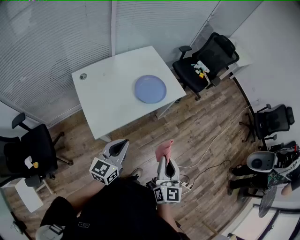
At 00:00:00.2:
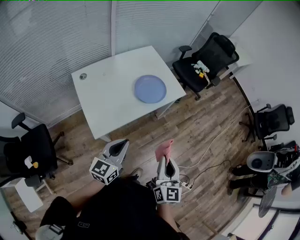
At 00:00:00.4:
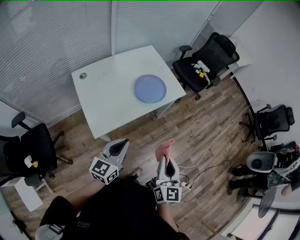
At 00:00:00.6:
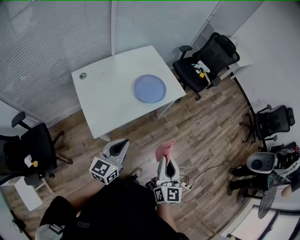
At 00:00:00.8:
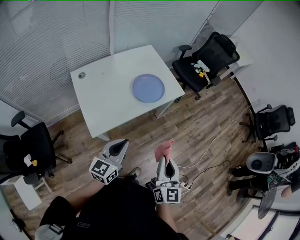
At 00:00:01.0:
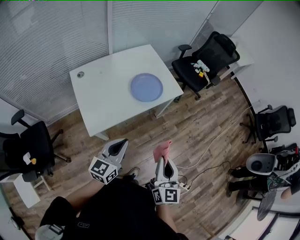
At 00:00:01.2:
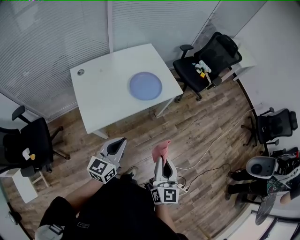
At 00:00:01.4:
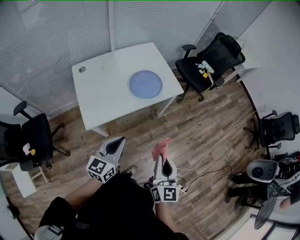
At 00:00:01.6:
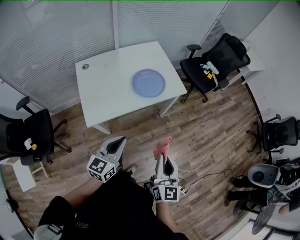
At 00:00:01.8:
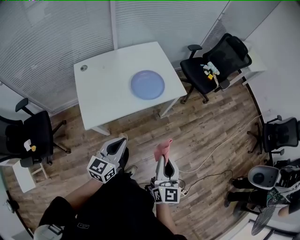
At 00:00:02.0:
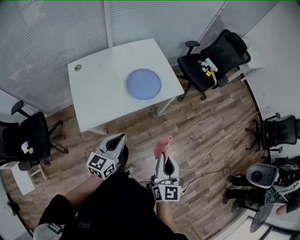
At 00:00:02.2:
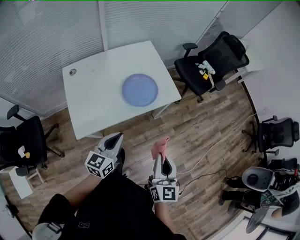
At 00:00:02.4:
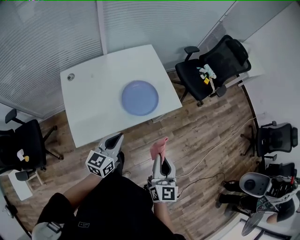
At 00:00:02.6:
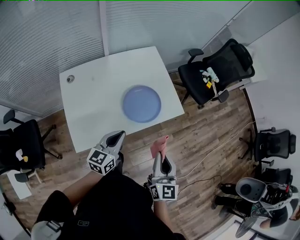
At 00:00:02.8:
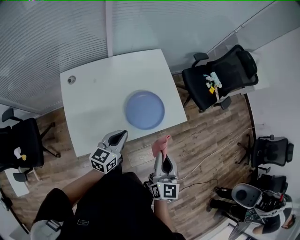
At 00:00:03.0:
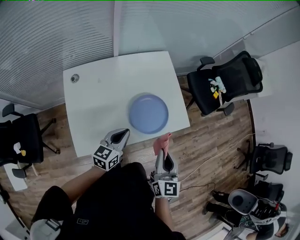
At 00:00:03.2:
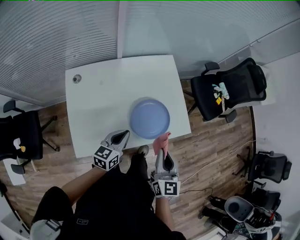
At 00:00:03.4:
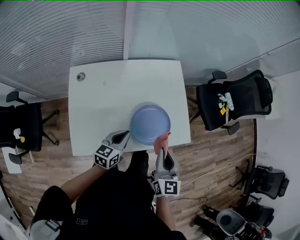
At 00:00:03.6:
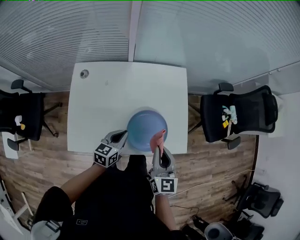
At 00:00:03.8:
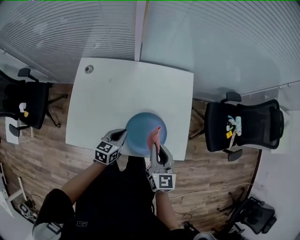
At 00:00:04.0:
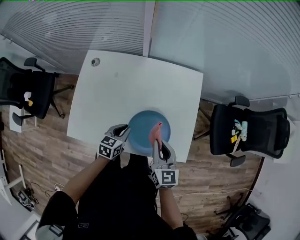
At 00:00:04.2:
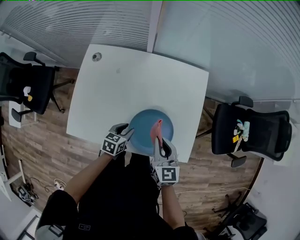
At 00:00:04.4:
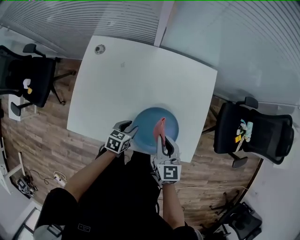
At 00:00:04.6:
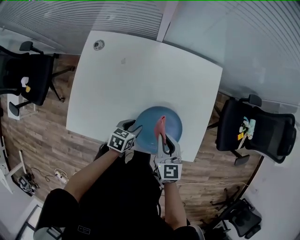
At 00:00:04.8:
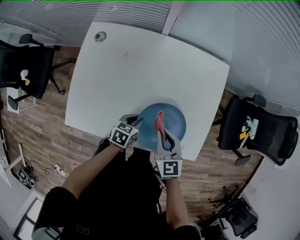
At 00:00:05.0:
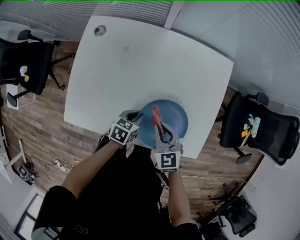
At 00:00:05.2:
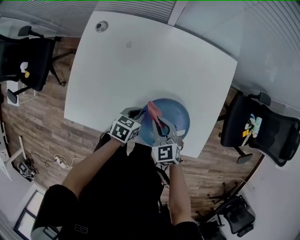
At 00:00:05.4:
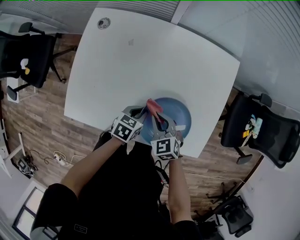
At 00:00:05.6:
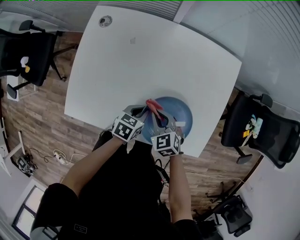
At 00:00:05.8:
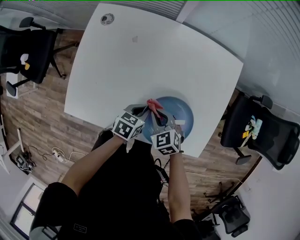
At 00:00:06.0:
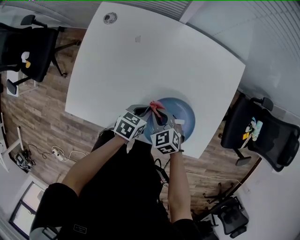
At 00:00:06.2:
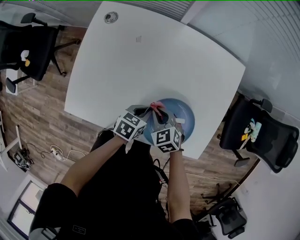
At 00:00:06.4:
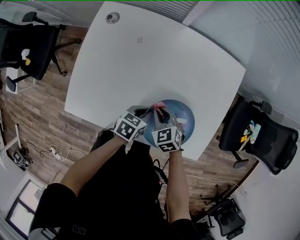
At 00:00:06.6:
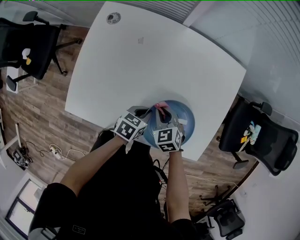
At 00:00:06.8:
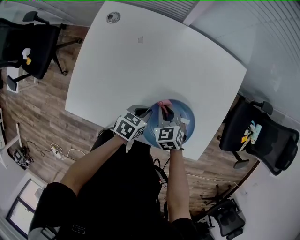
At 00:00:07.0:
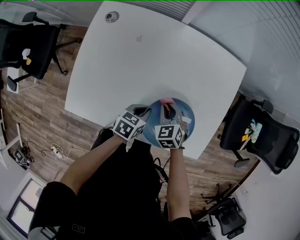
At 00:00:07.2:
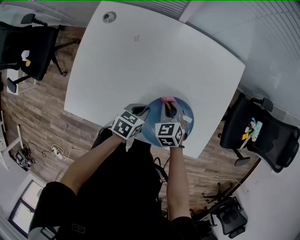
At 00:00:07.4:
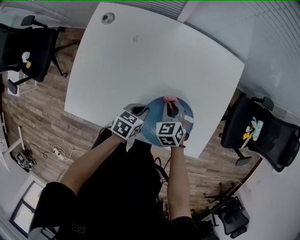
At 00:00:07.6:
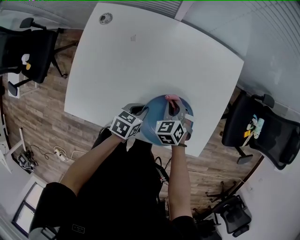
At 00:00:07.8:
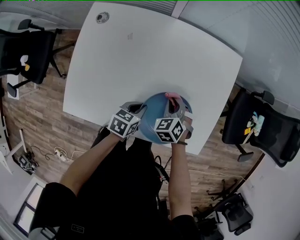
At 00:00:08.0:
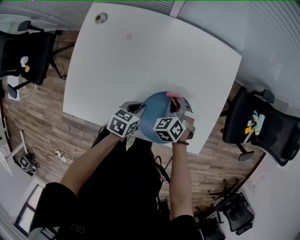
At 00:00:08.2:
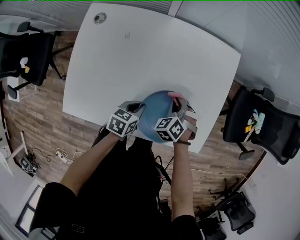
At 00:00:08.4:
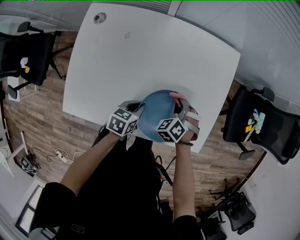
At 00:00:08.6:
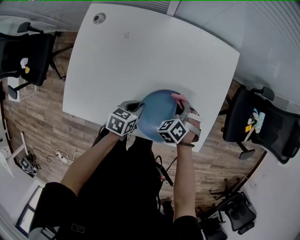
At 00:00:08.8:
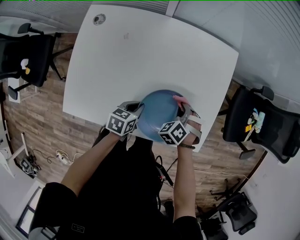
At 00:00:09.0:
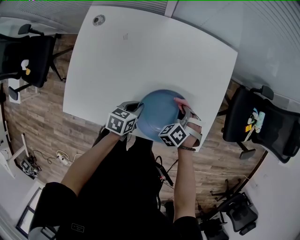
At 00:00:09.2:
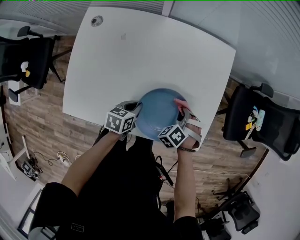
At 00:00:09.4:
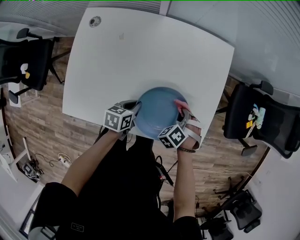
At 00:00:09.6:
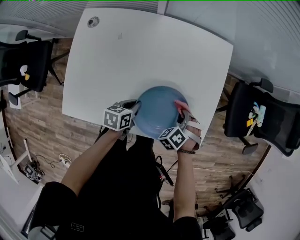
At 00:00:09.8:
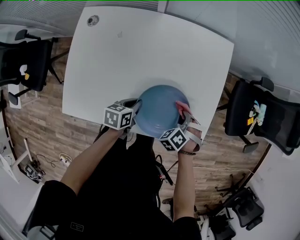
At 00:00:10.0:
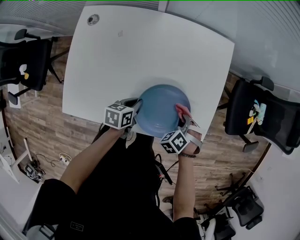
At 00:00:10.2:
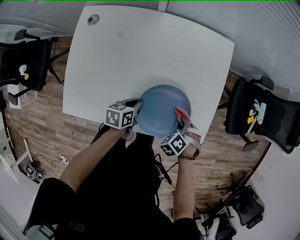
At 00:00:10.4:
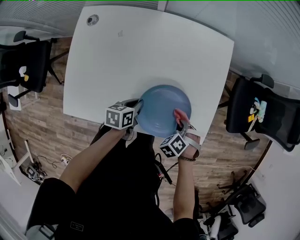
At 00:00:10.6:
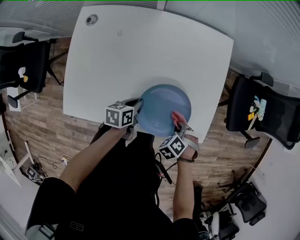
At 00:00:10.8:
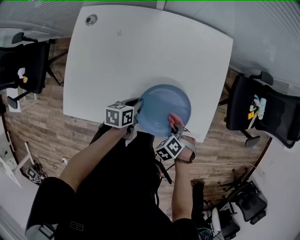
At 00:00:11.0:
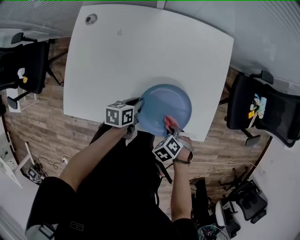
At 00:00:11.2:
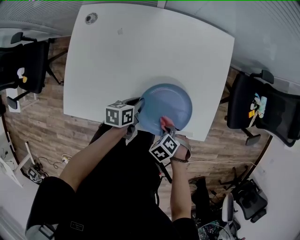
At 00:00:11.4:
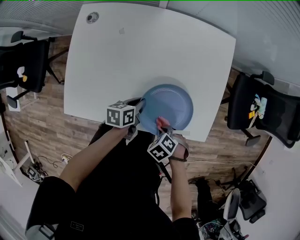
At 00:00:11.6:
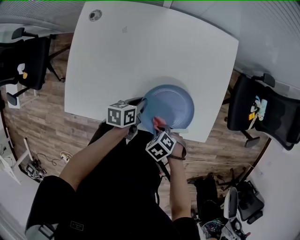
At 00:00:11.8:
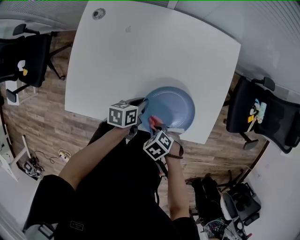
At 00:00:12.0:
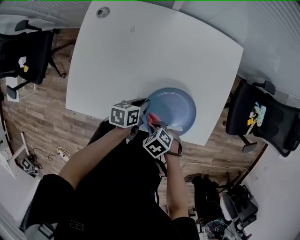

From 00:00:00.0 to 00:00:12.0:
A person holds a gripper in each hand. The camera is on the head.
From 00:00:00.0 to 00:00:01.6: The two grippers go some 10 cm to the right.
From 00:00:01.6 to 00:00:03.0: The two grippers go approximately 30 cm forward.
From 00:00:03.0 to 00:00:04.4: The right gripper moves roughly 25 cm, and rotates about 40 degrees, while the left gripper travels downward by roughly 20 cm, tilts its fingers approximately 30 degrees downward, and opens its fingers.
From 00:00:04.4 to 00:00:06.0: The right gripper heads downward and to the left, covering approximately 20 cm, and swivels some 50 degrees, while the left gripper closes.
From 00:00:06.0 to 00:00:07.6: The right gripper moves forward and to the right, about 10 cm, and swivels some 20 degrees.
From 00:00:07.6 to 00:00:09.0: The right gripper shifts roughly 10 cm to the right, and changes its angle by roughly 30 degrees.
From 00:00:09.0 to 00:00:10.4: The right gripper shifts by some 10 cm.
From 00:00:10.4 to 00:00:12.0: The right gripper shifts by about 15 cm, and swivels about 30 degrees.

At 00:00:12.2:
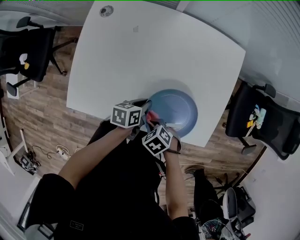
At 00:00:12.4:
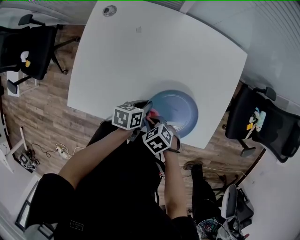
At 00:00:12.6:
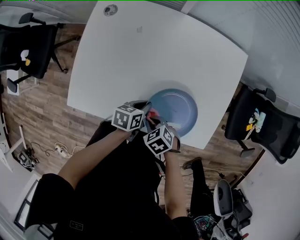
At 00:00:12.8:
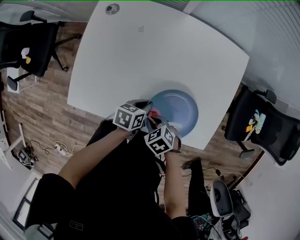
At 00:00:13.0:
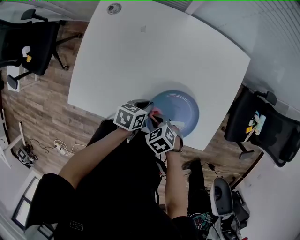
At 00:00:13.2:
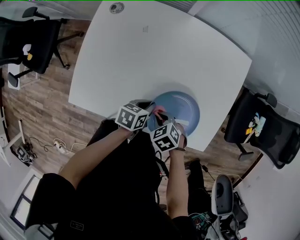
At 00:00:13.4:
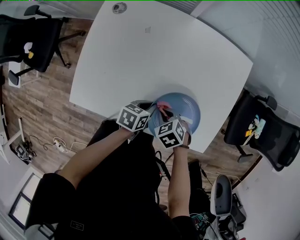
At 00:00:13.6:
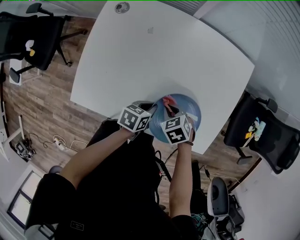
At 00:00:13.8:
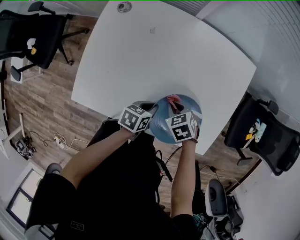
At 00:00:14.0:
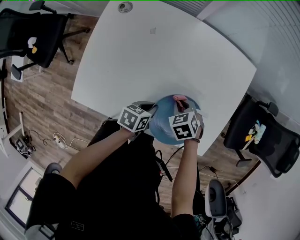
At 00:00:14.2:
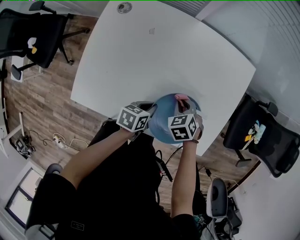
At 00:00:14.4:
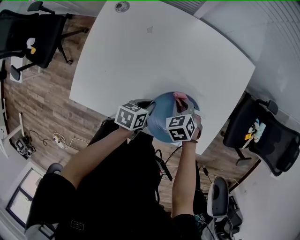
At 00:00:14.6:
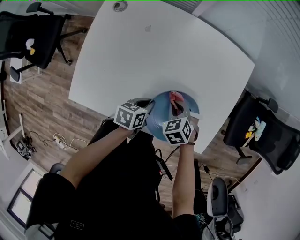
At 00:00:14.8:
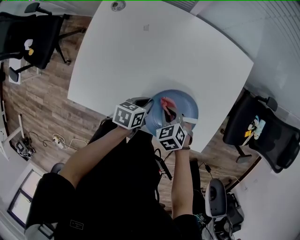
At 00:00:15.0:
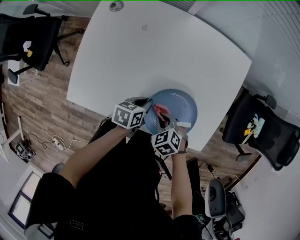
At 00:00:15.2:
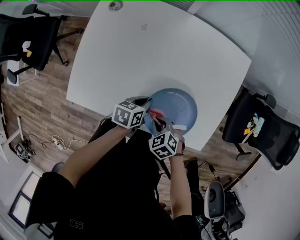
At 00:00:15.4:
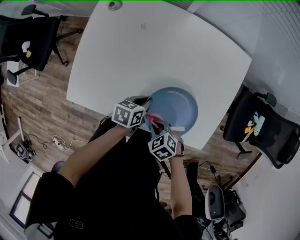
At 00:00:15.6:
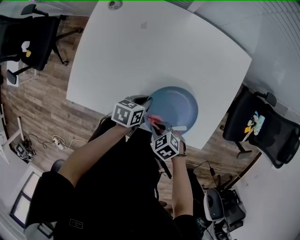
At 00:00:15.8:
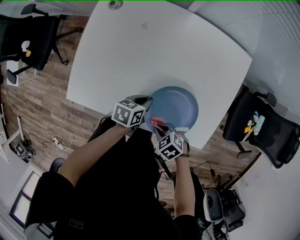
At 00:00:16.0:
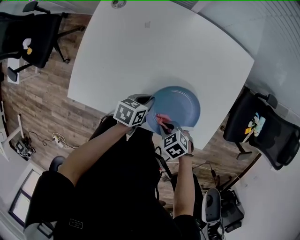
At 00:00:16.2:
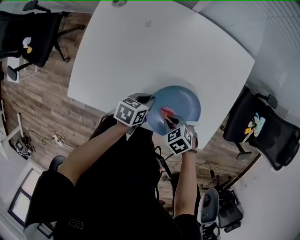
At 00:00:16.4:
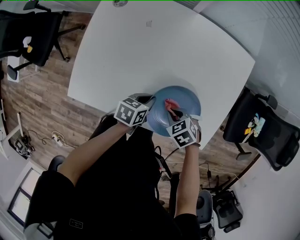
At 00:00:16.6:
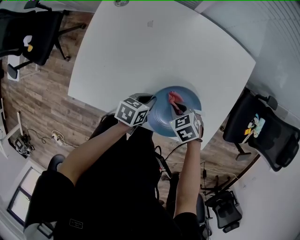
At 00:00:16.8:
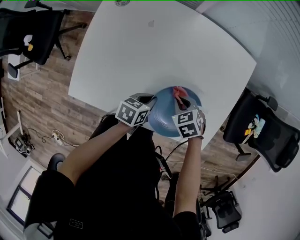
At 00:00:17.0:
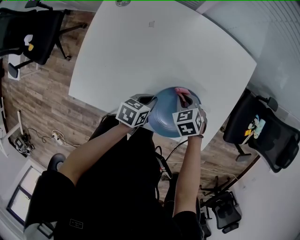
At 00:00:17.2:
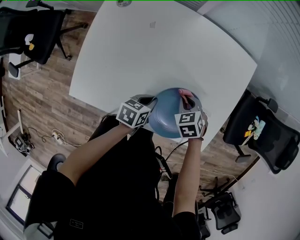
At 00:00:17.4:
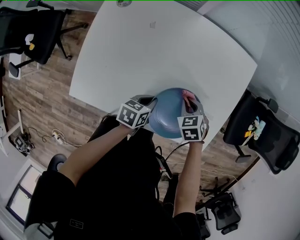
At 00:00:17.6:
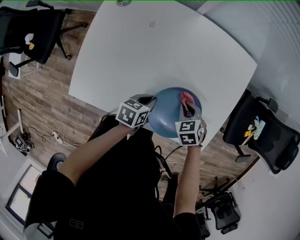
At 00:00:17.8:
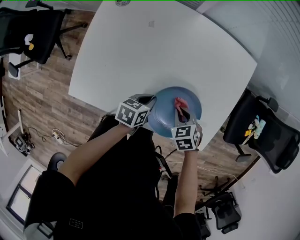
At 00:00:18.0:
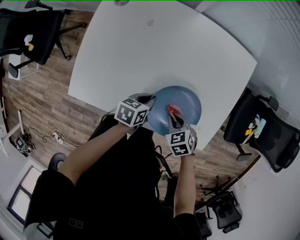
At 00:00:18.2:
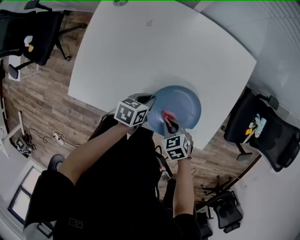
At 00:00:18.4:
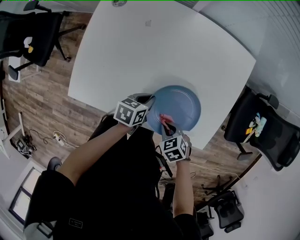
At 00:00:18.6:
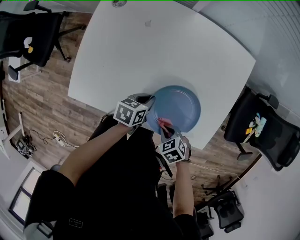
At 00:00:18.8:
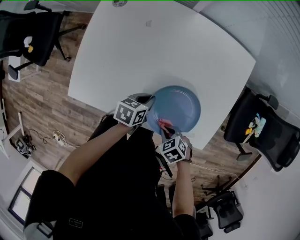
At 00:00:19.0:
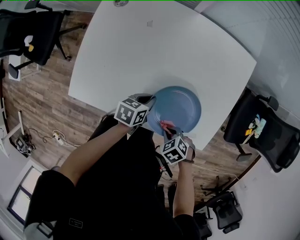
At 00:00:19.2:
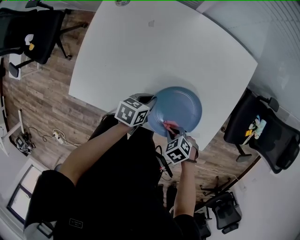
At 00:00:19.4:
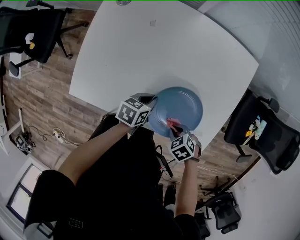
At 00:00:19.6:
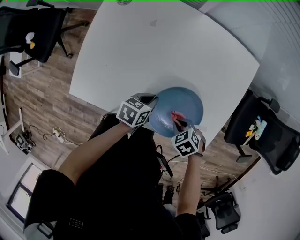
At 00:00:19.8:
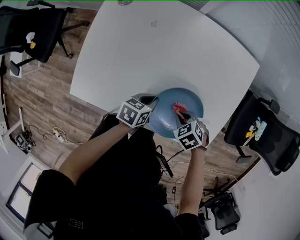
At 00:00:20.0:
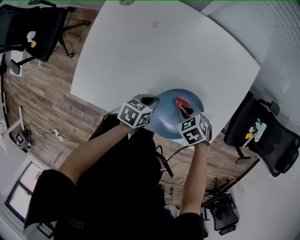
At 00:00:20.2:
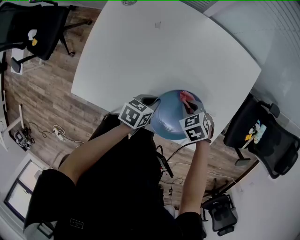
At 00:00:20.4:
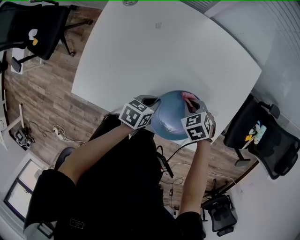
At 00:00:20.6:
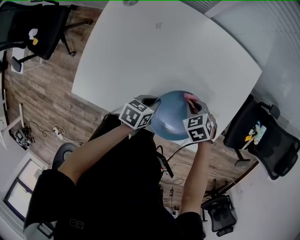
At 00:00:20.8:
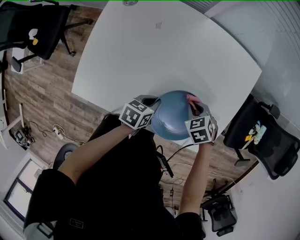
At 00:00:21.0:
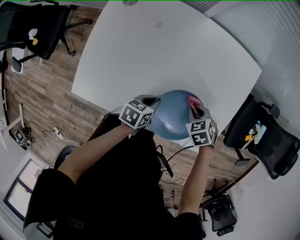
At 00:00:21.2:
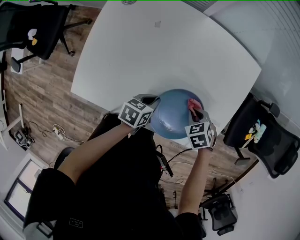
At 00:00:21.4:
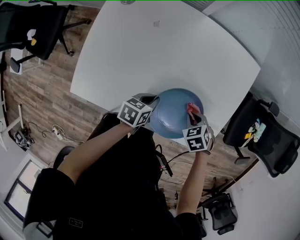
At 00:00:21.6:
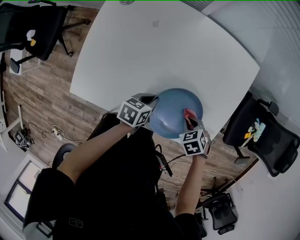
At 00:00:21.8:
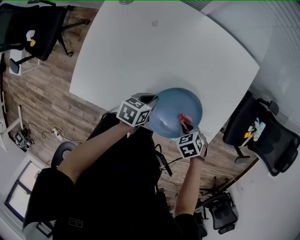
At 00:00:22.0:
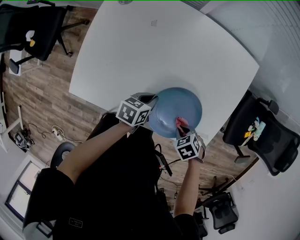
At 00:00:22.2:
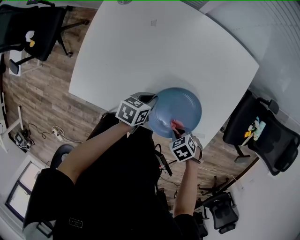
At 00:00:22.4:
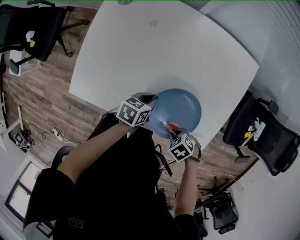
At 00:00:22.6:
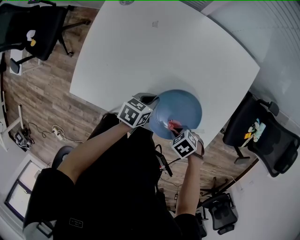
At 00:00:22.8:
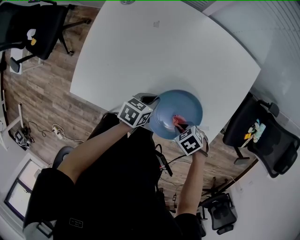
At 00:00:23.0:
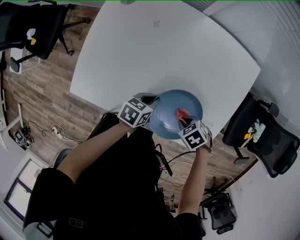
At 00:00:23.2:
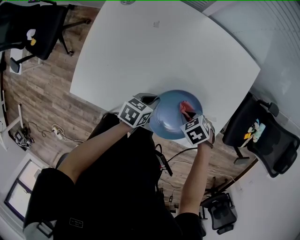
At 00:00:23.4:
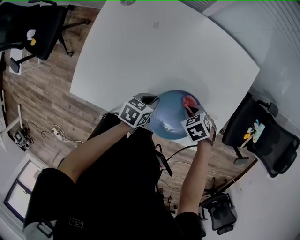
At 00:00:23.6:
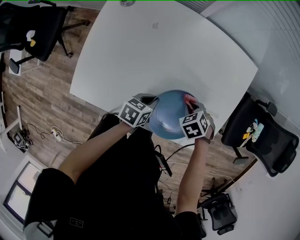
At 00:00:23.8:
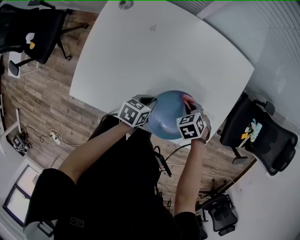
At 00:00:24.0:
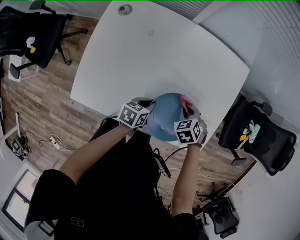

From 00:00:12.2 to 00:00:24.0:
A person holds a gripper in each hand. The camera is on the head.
From 00:00:12.2 to 00:00:13.6: The right gripper ends up some 10 cm from where it was.
From 00:00:13.6 to 00:00:15.2: The right gripper ends up roughly 10 cm from where it was.
From 00:00:15.2 to 00:00:16.6: The right gripper ends up some 10 cm from where it was.
From 00:00:16.6 to 00:00:18.2: The right gripper shifts by roughly 10 cm.
From 00:00:18.2 to 00:00:19.6: The grippers make only small movements.
From 00:00:19.6 to 00:00:21.0: The right gripper ends up some 10 cm from where it was.
From 00:00:21.0 to 00:00:22.6: The right gripper changes place by roughly 15 cm, and changes its angle by some 30 degrees.
From 00:00:22.6 to 00:00:24.0: The right gripper changes place by about 15 cm, and rotates roughly 40 degrees.
